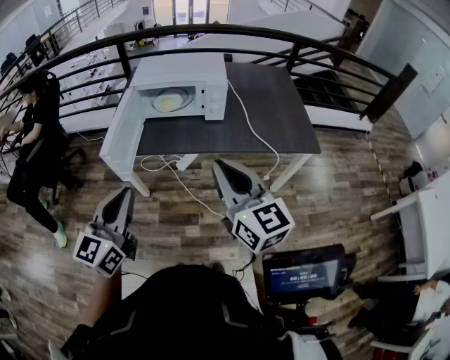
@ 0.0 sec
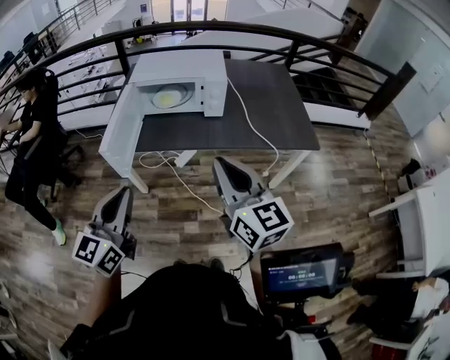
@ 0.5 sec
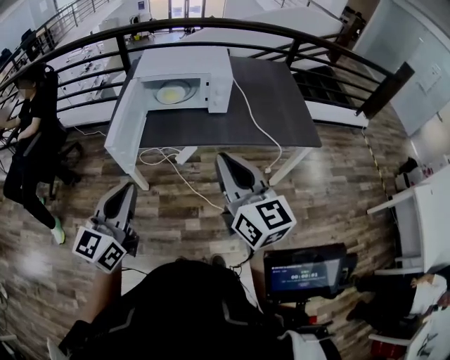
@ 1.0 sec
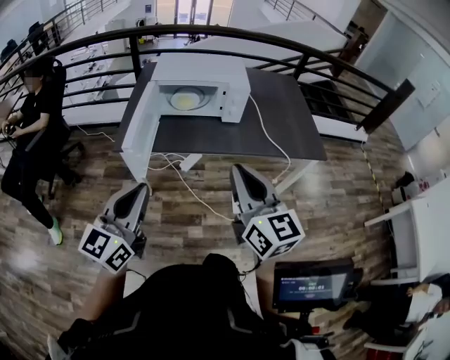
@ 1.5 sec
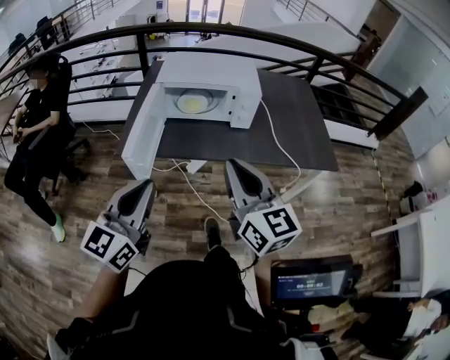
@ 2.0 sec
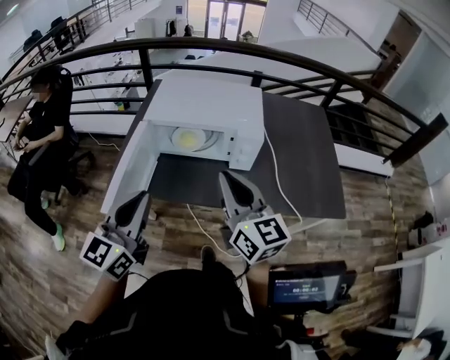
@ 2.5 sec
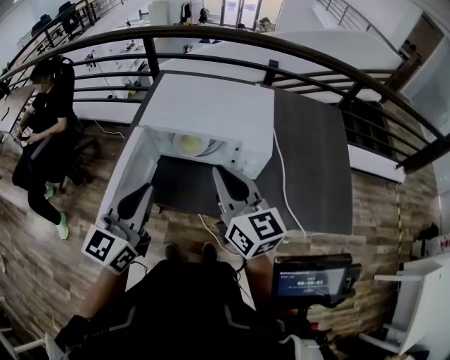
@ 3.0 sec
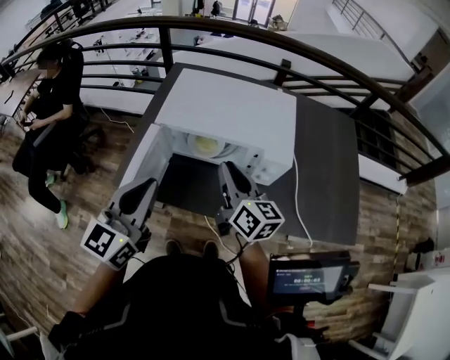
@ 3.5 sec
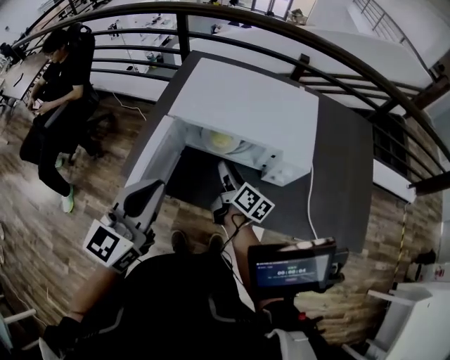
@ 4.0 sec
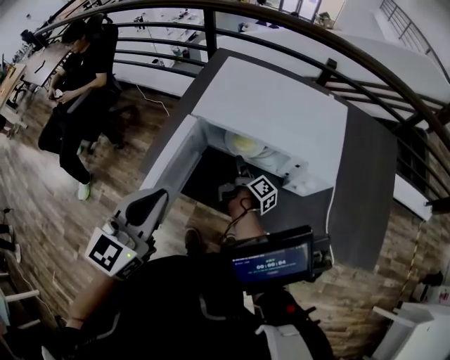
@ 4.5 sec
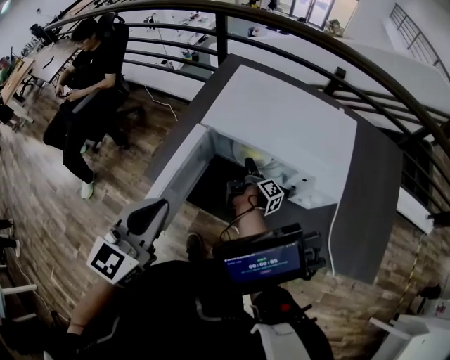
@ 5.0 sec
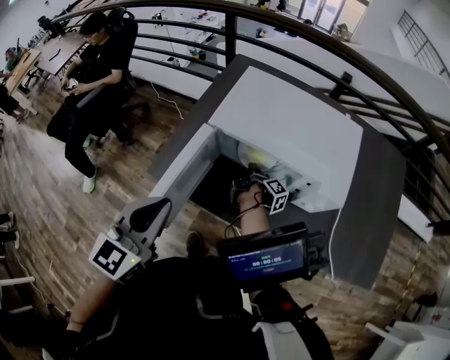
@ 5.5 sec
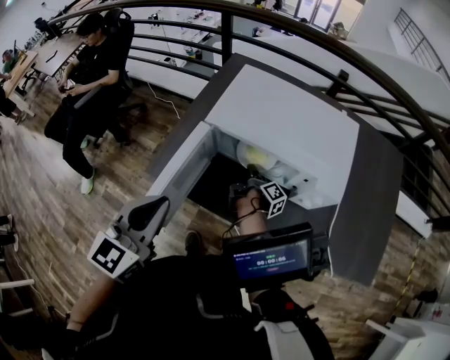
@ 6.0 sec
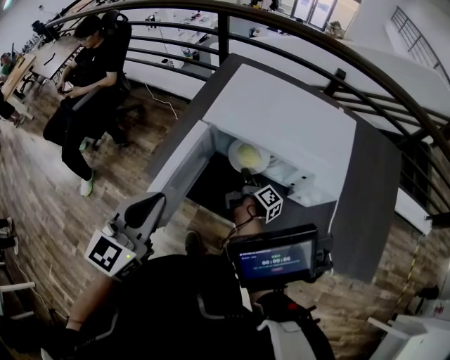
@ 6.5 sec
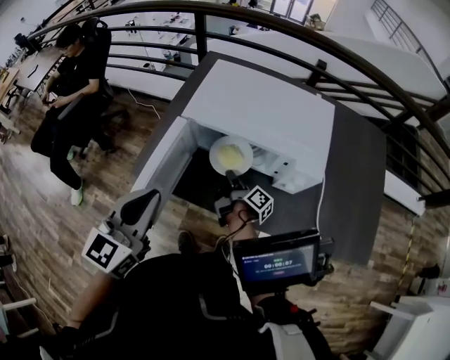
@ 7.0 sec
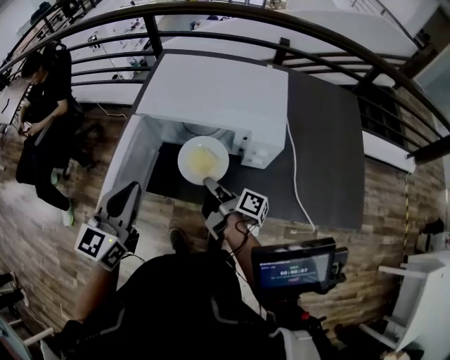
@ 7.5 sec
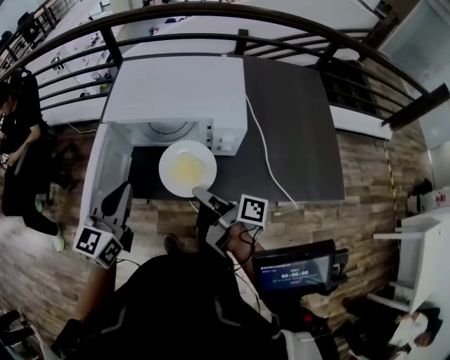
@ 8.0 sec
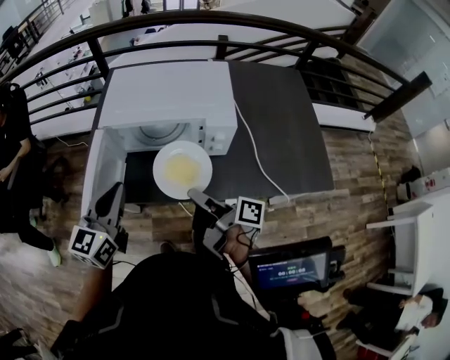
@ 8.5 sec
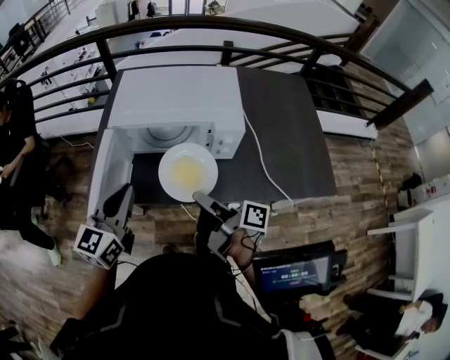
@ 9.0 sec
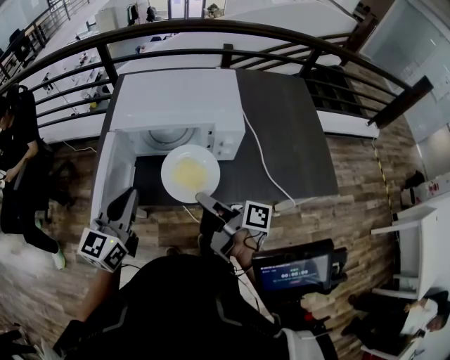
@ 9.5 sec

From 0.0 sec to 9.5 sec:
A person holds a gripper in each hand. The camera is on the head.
From 0.0 sec to 2.0 sec: The left gripper travels to the left by some 5 cm. The right gripper travels to the left and forward by approximately 10 cm.
From 2.0 sec to 4.0 sec: The right gripper shifts roughly 50 cm forward and downward, rolls clockwise, seen from behind, by about 50 degrees, and opens its fingers. Meanwhile the left gripper goes about 30 cm forward.
From 4.0 sec to 5.5 sec: The left gripper goes some 5 cm to the left. The right gripper goes about 15 cm downward and forward, rotates around the line of its fingers by approximately 50 degrees, clockwise from behind, and closes its fingers.
From 5.5 sec to 7.5 sec: The right gripper travels backward and upward by about 20 cm, and changes its angle by about 30 degrees. The left gripper moves to the right, approximately 5 cm.
From 7.5 sec to 9.5 sec: The right gripper moves upward and backward, roughly 15 cm.

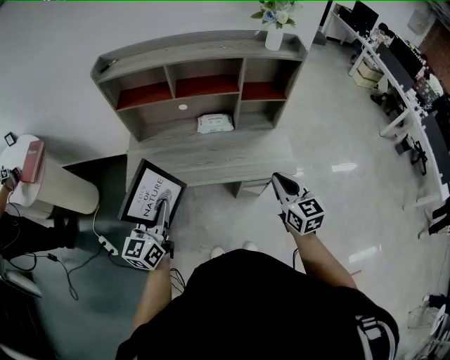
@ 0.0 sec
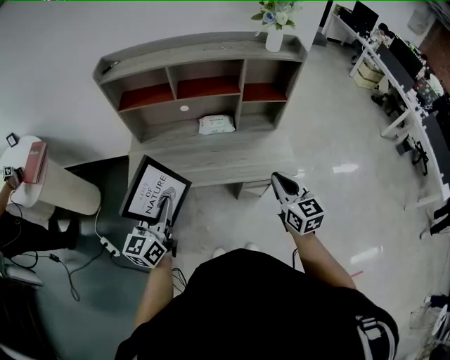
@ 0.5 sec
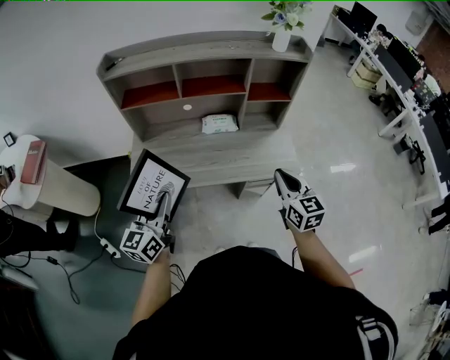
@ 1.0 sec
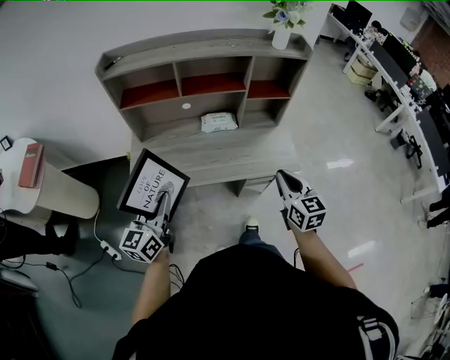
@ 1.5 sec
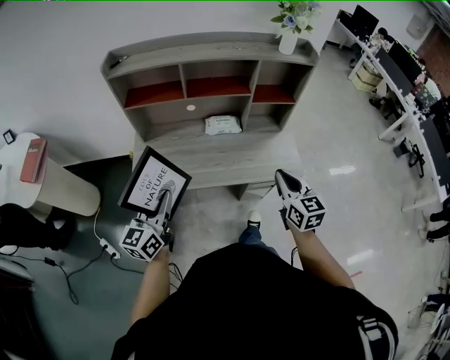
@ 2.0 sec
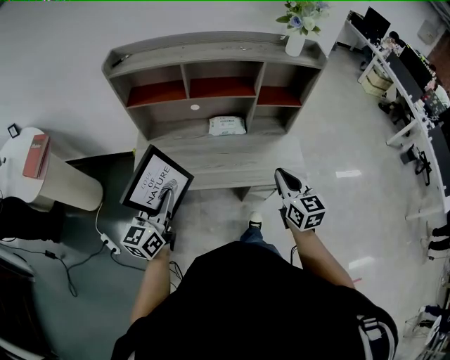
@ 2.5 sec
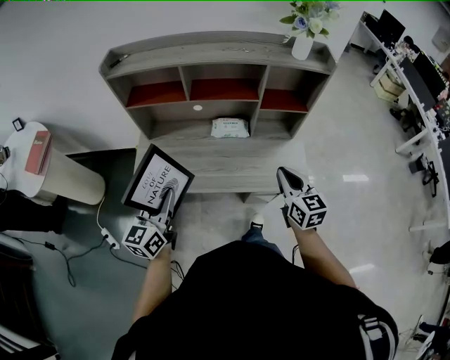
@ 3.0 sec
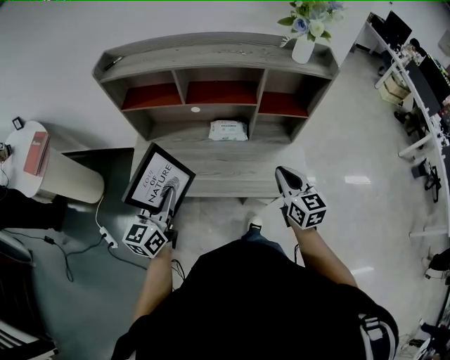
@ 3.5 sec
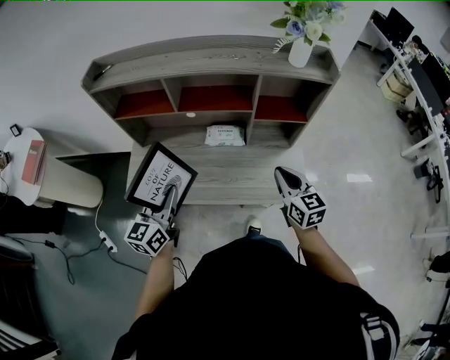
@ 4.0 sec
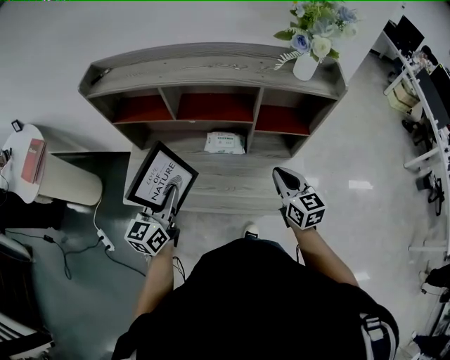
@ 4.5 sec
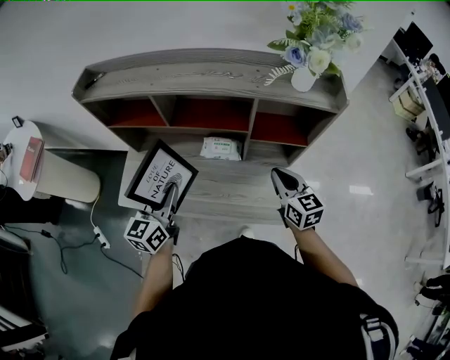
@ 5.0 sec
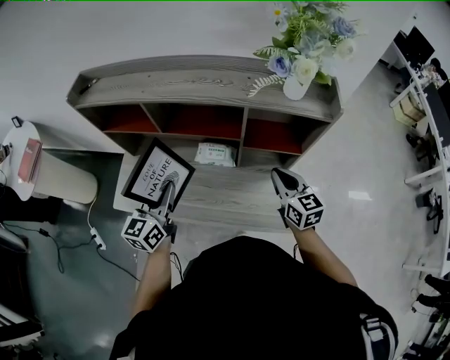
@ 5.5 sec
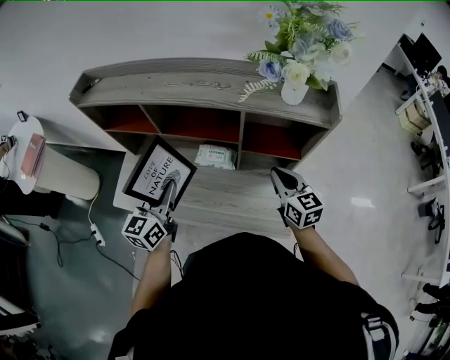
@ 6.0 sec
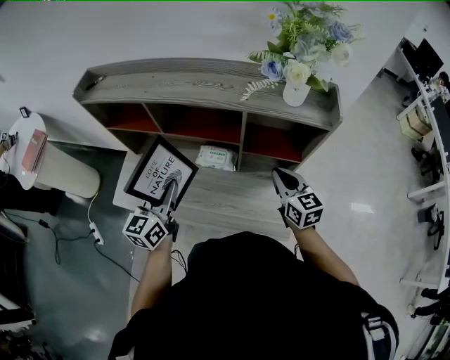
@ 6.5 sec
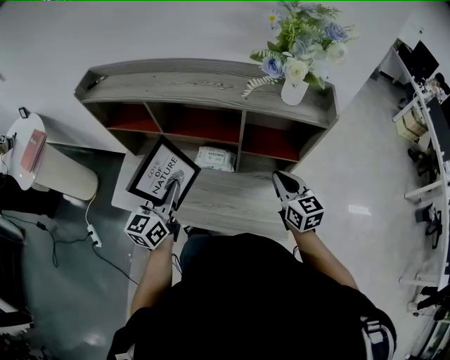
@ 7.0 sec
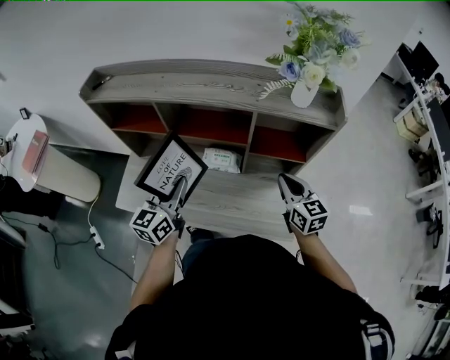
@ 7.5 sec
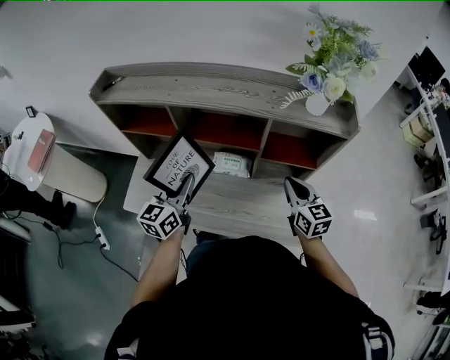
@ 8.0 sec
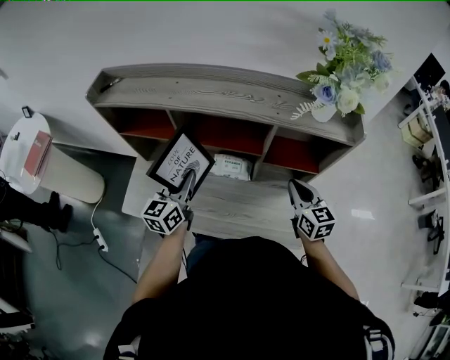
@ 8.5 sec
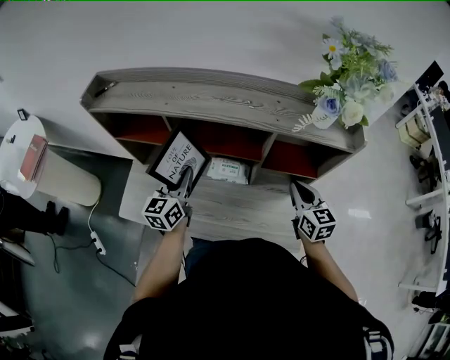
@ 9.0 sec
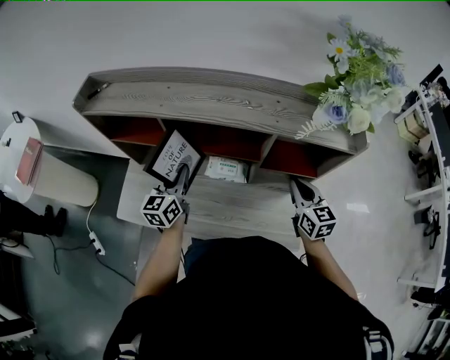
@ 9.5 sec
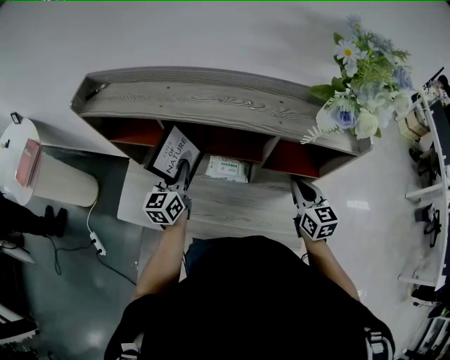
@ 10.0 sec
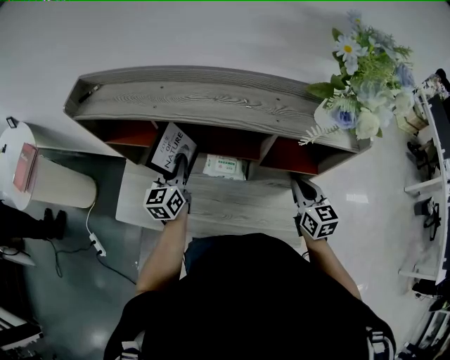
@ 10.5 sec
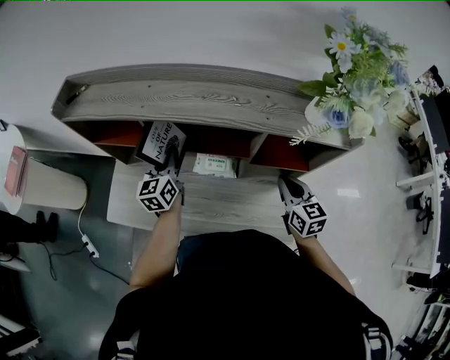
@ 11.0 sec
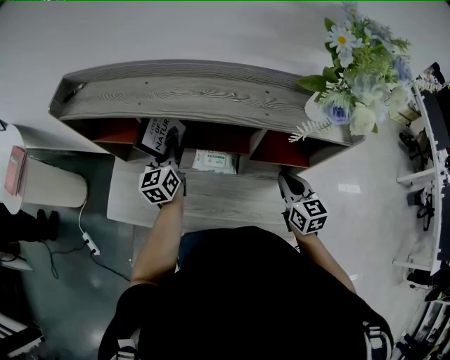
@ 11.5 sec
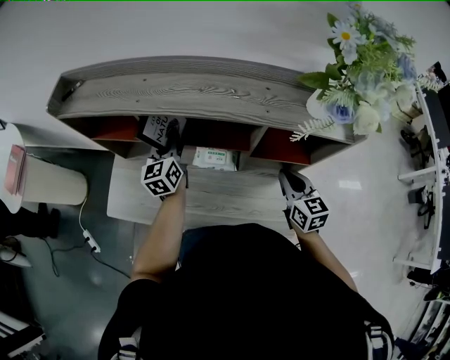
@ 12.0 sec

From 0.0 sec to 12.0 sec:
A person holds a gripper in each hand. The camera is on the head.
From 0.0 sec to 2.0 sec: The left gripper ends up roughly 5 cm from where it was.
From 2.0 sec to 4.0 sec: The grippers both shift forward and to the right by about 20 cm.
From 4.0 sec to 6.0 sec: Both grippers travel together forward and to the right, approximately 15 cm.
From 6.0 sec to 8.0 sec: The grippers stay close to where they were, moving slightly.
From 8.0 sec to 10.0 sec: The right gripper travels forward by approximately 5 cm. The left gripper goes approximately 15 cm forward and downward.
From 10.0 sec to 12.0 sec: The left gripper shifts approximately 10 cm forward.

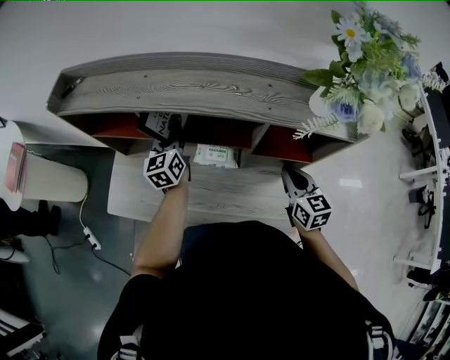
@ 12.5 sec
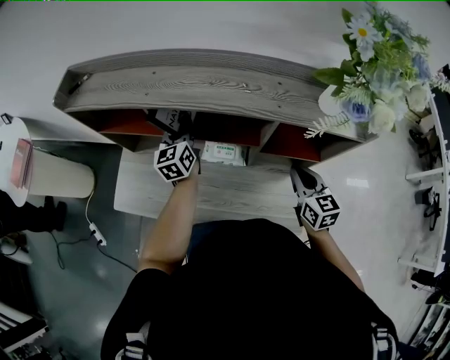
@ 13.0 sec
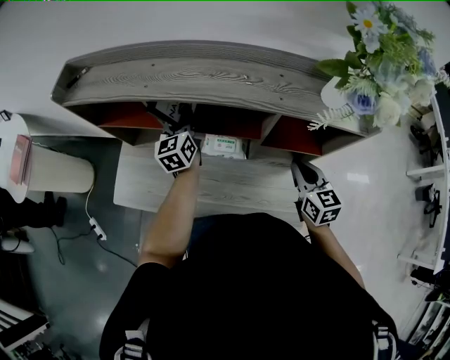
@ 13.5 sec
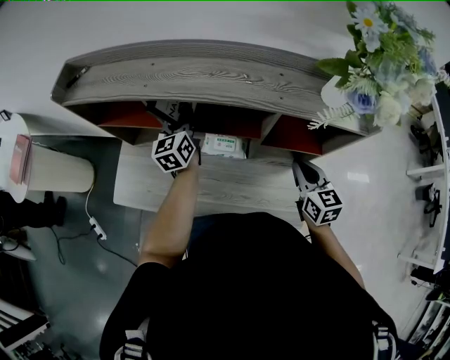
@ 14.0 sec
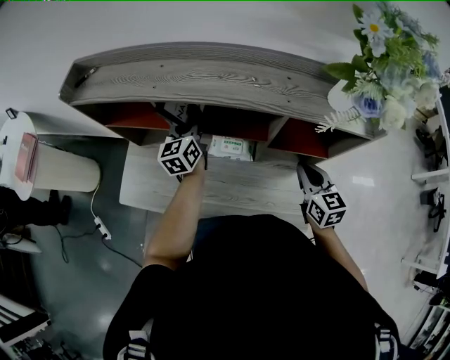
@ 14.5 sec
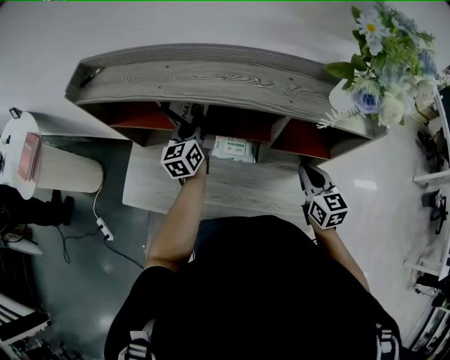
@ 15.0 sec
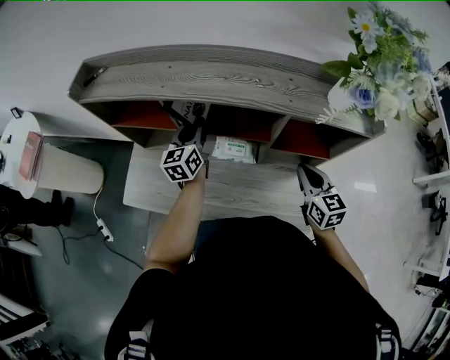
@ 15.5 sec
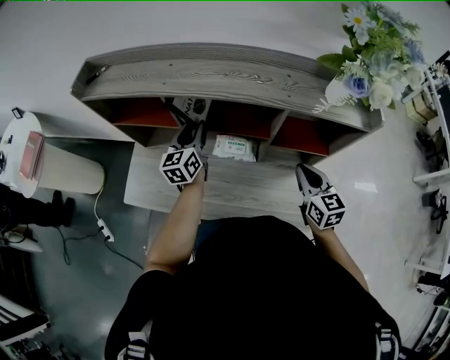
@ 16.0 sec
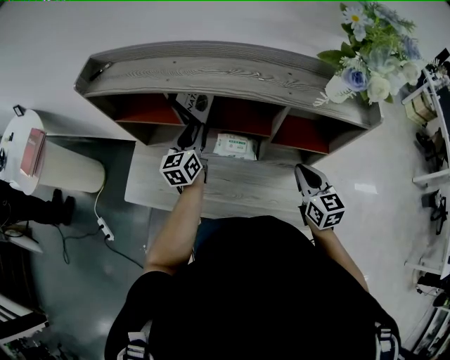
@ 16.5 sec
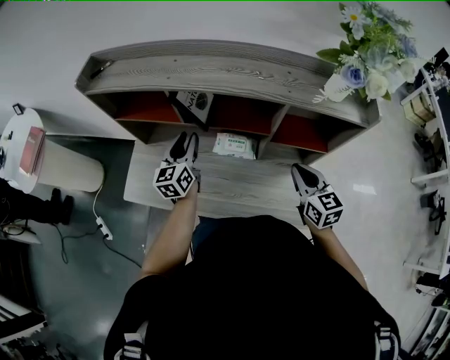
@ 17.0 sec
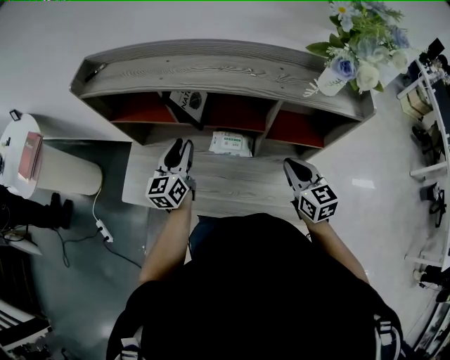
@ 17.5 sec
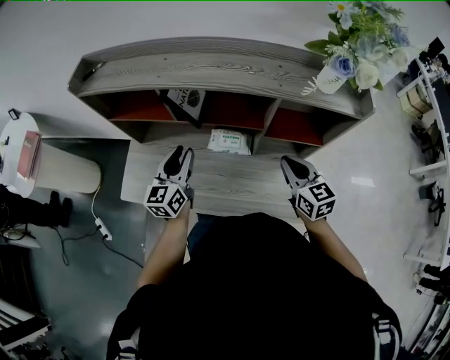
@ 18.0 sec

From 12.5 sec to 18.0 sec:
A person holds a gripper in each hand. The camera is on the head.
From 12.5 sec to 16.0 sec: The grippers stay close to where they were, moving slightly.
From 16.0 sec to 18.0 sec: The left gripper is displaced backward by roughly 10 cm.
